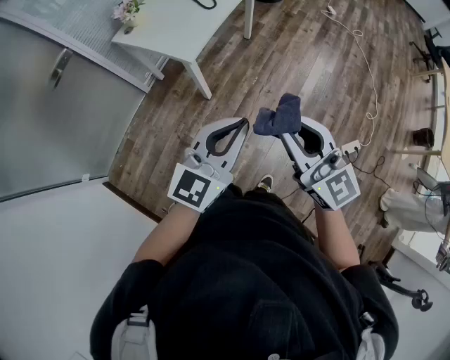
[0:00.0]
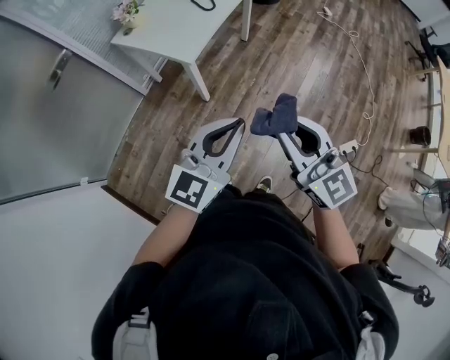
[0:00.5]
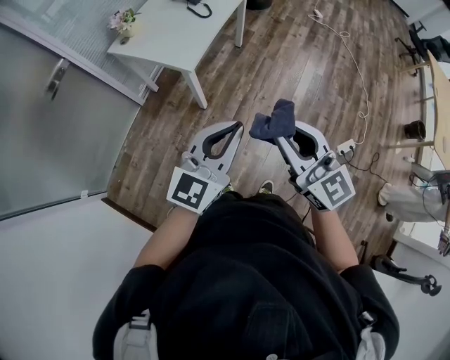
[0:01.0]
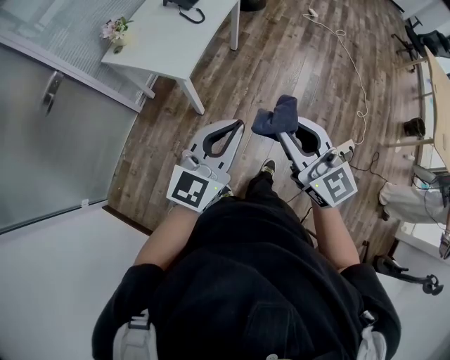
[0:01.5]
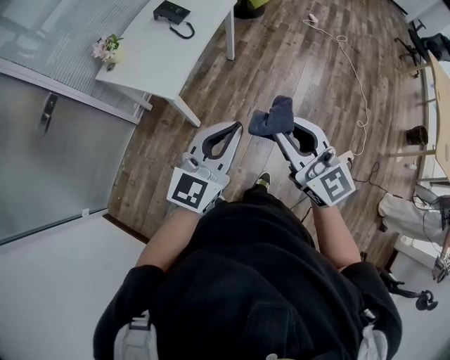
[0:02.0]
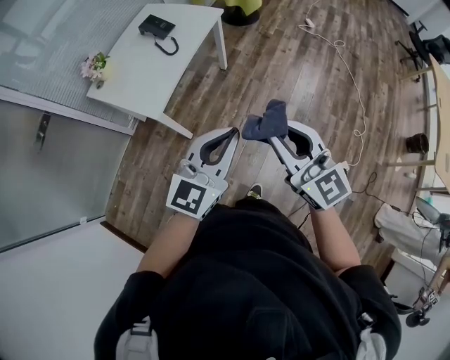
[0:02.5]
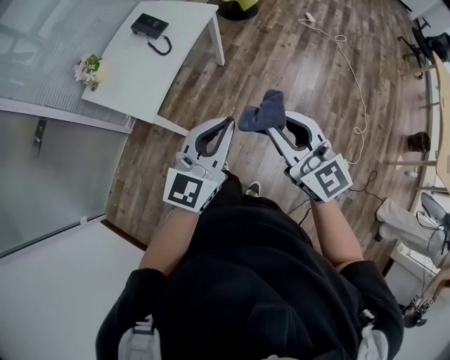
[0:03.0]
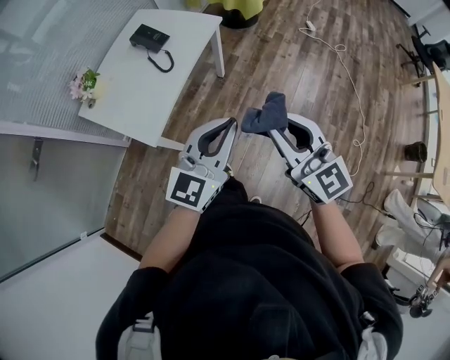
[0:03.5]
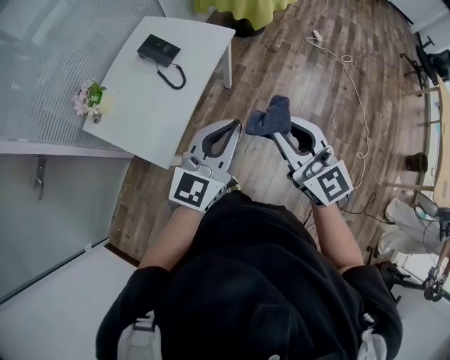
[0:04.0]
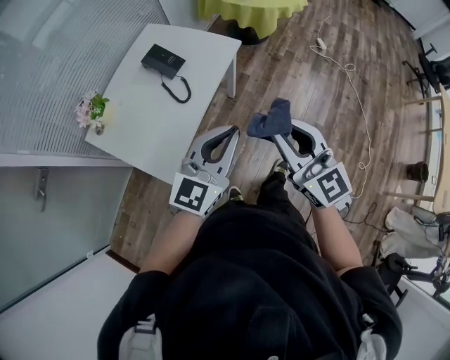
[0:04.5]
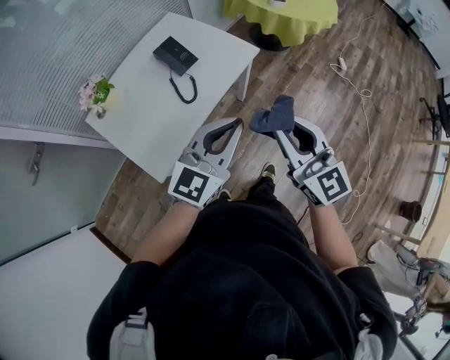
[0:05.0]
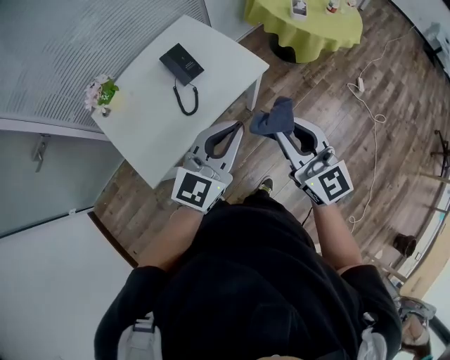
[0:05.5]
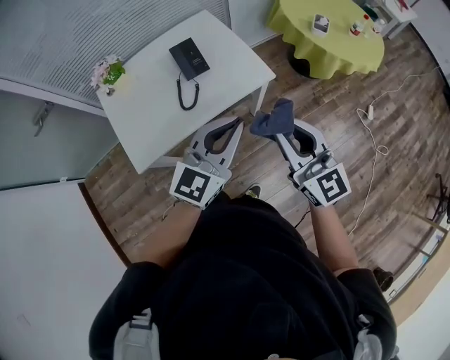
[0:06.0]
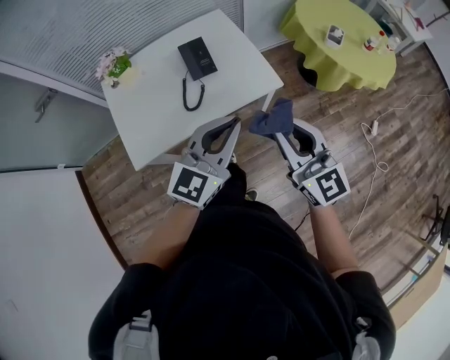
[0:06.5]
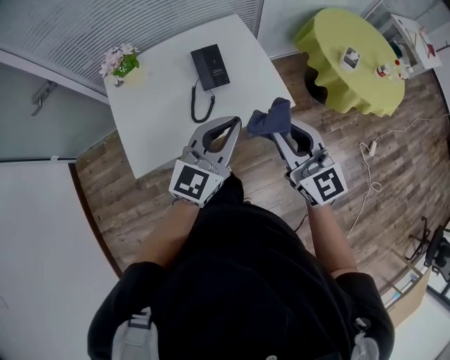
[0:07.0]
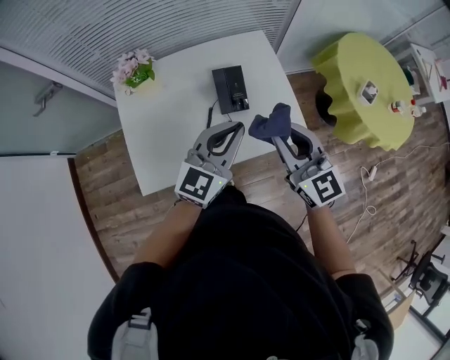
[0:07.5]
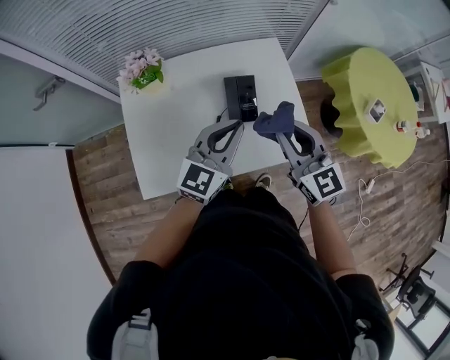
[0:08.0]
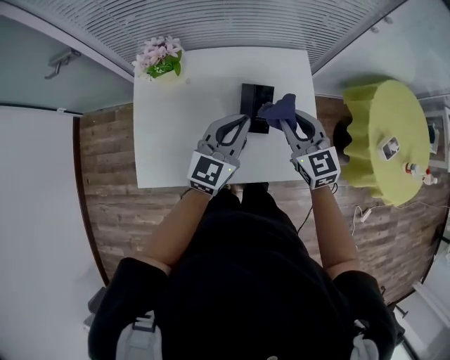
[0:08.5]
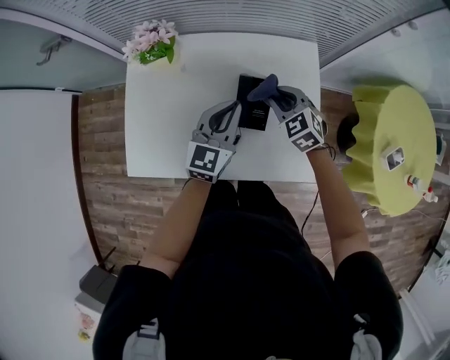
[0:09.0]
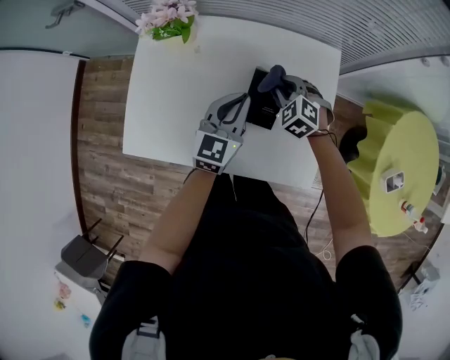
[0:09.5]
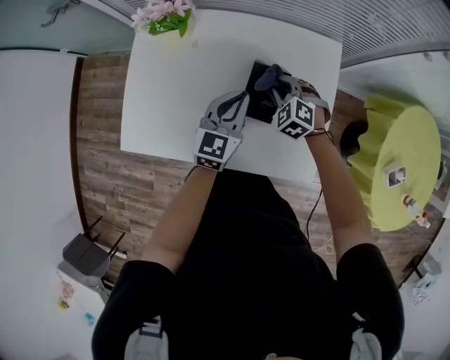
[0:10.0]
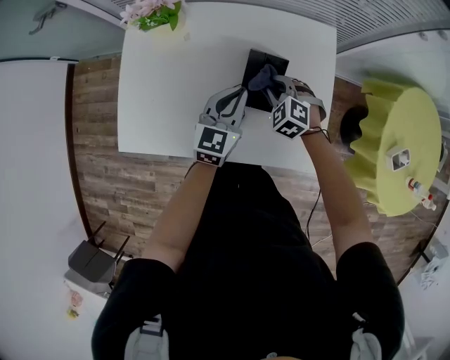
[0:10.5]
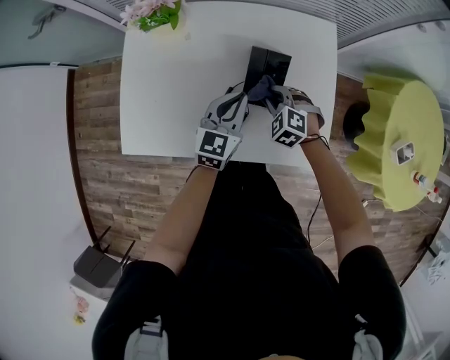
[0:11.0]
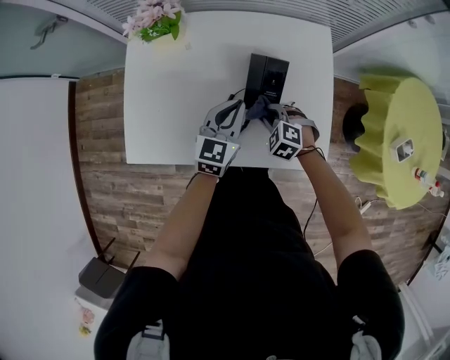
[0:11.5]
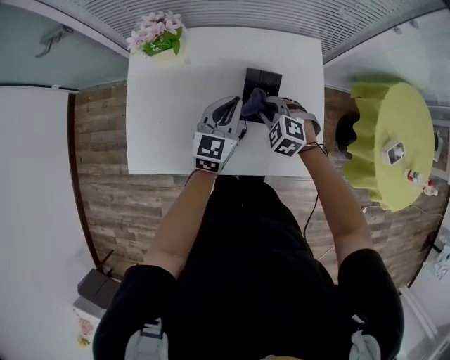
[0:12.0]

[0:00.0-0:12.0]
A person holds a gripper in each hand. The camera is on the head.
0:00.0 to 0:02.0: Both grippers travel together forward, about 10 cm.
0:02.0 to 0:04.0: Both grippers move forward, approximately 35 cm.
0:04.0 to 0:06.0: The left gripper ends up roughly 25 cm from where it was, and changes its angle by roughly 30 degrees, while the right gripper moves some 30 cm, and changes its angle by approximately 30 degrees.
0:06.0 to 0:08.0: Both grippers move forward and to the left, about 35 cm. The left gripper rotates roughly 20 degrees.
0:08.0 to 0:10.0: The right gripper moves downward and forward, approximately 35 cm, and tilts its fingers roughly 40 degrees downward; the left gripper heads downward and forward, covering about 20 cm, and rotates some 30 degrees.
0:10.0 to 0:12.0: The right gripper goes about 5 cm backward.

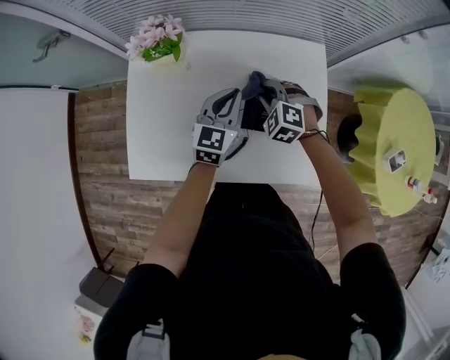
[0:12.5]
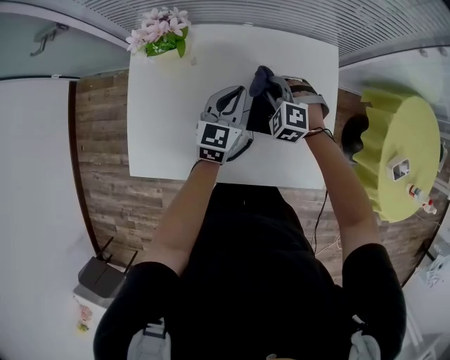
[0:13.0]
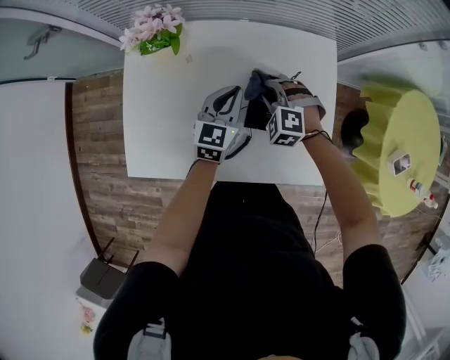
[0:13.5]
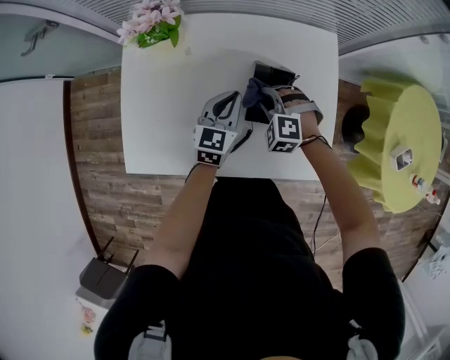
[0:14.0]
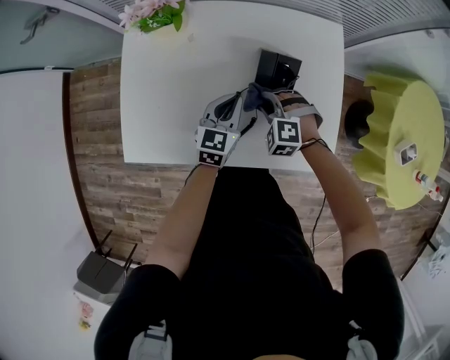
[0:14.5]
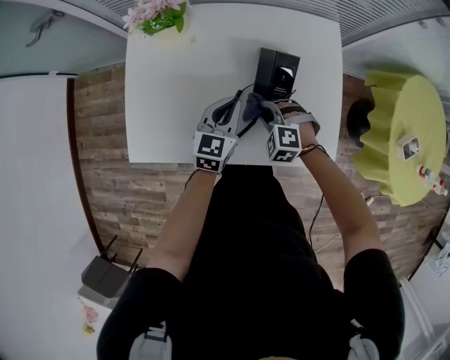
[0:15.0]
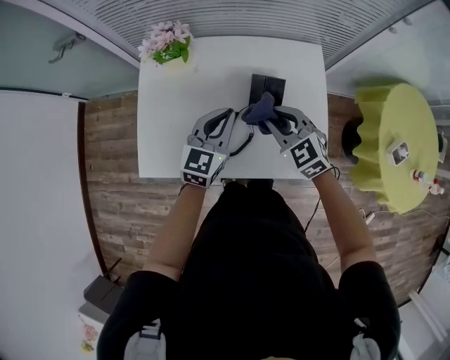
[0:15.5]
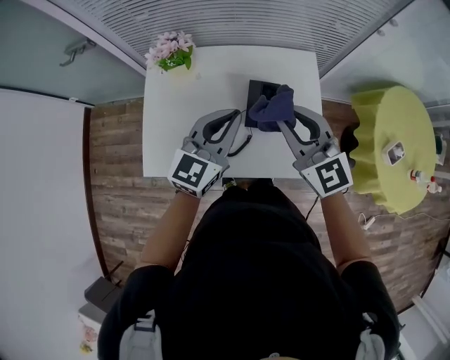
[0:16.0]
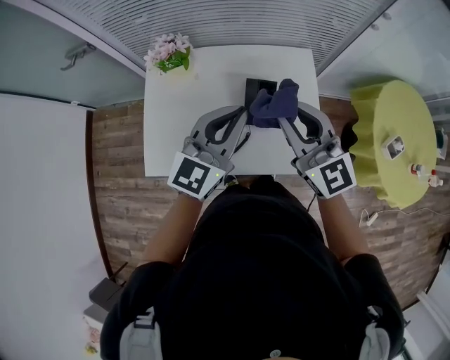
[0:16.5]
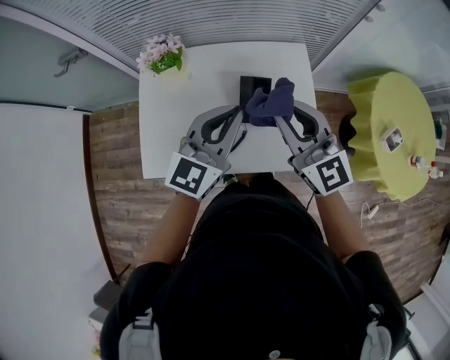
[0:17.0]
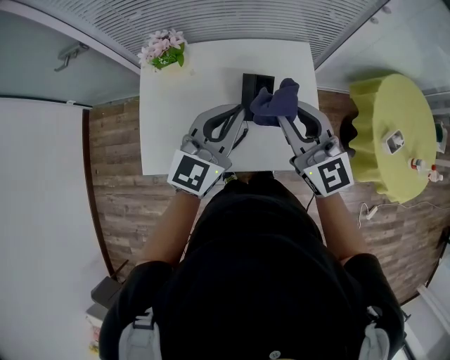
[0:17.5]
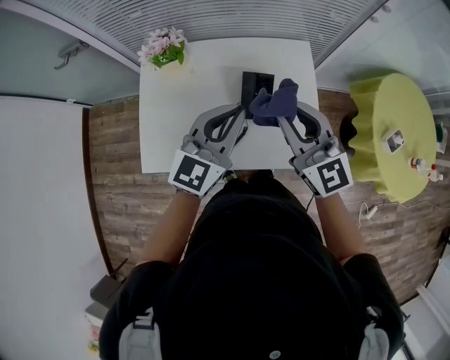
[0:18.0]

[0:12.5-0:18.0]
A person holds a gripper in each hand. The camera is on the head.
0:12.5 to 0:14.5: The left gripper is displaced downward and backward by roughly 10 cm. The right gripper heads backward and downward, covering roughly 15 cm.
0:14.5 to 0:16.0: Both grippers move upward, approximately 30 cm. The left gripper swivels some 20 degrees. The right gripper points its fingers approximately 50 degrees further upward.
0:16.0 to 0:18.0: The grippers stay close to where they were, moving slightly.

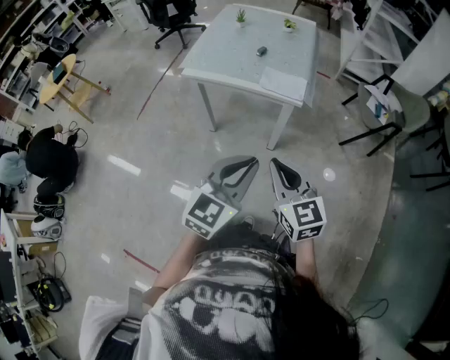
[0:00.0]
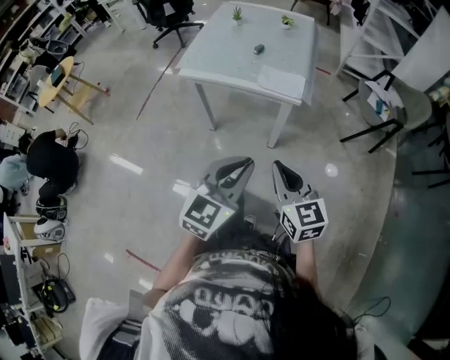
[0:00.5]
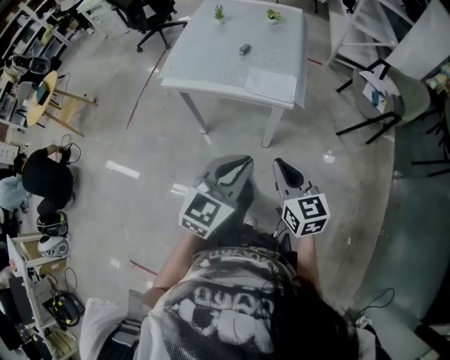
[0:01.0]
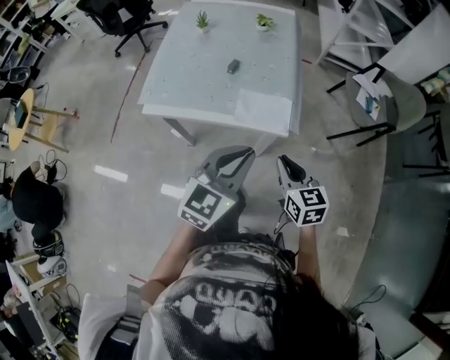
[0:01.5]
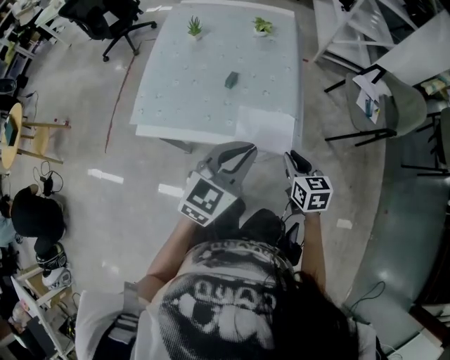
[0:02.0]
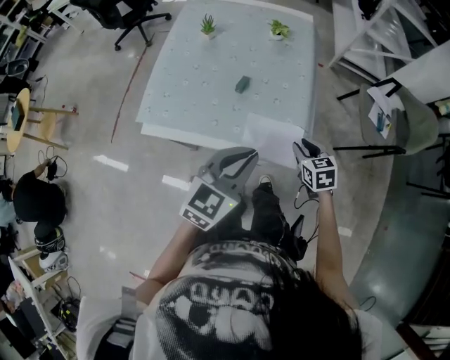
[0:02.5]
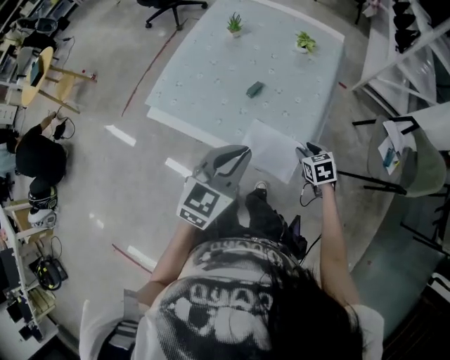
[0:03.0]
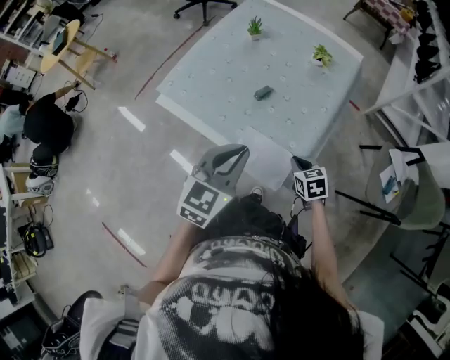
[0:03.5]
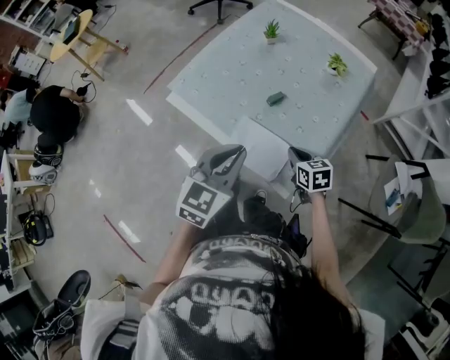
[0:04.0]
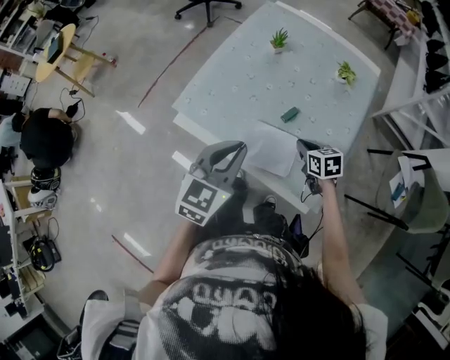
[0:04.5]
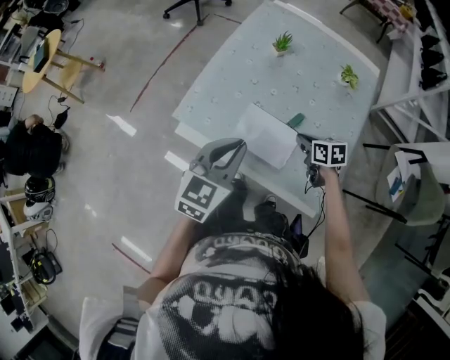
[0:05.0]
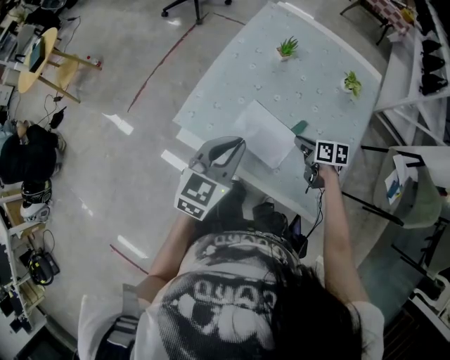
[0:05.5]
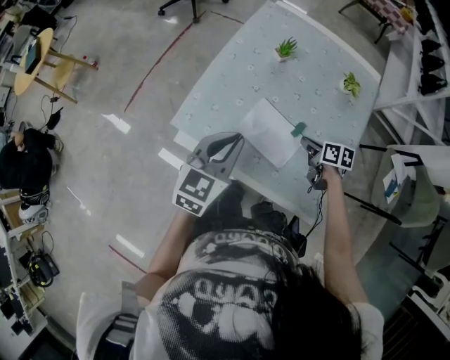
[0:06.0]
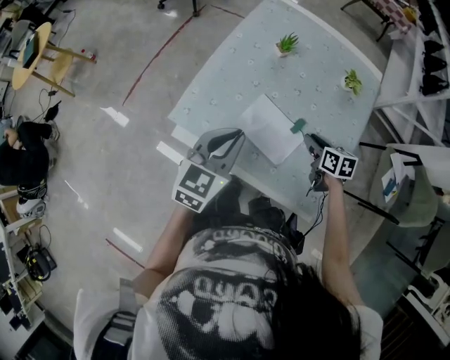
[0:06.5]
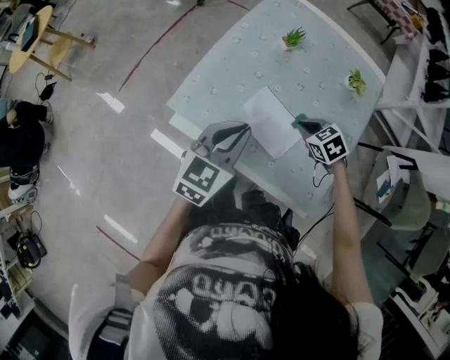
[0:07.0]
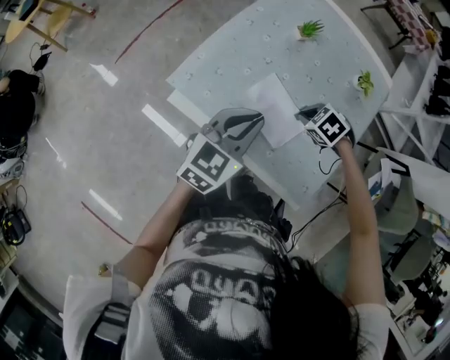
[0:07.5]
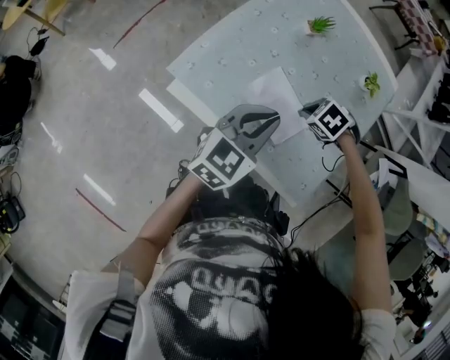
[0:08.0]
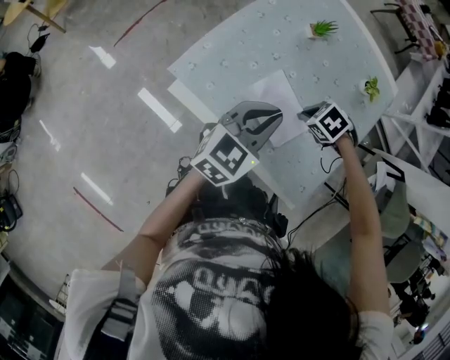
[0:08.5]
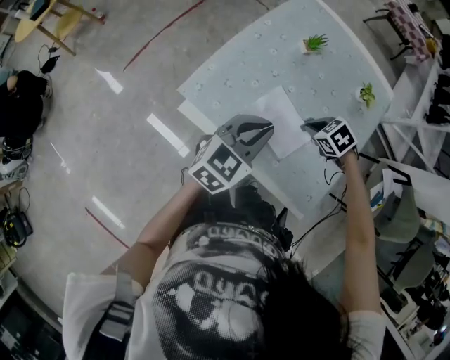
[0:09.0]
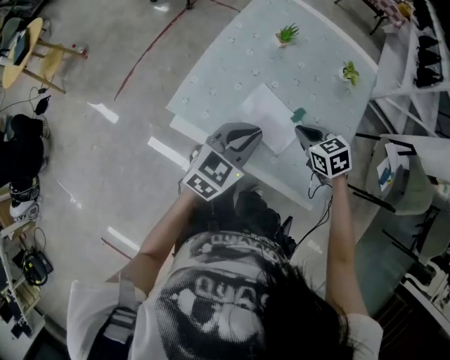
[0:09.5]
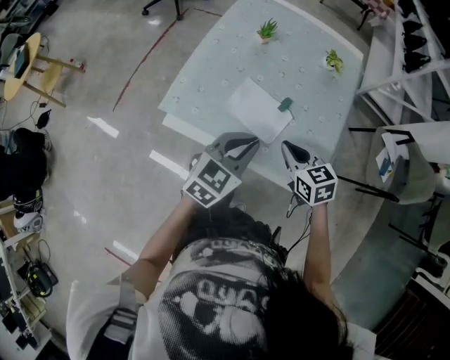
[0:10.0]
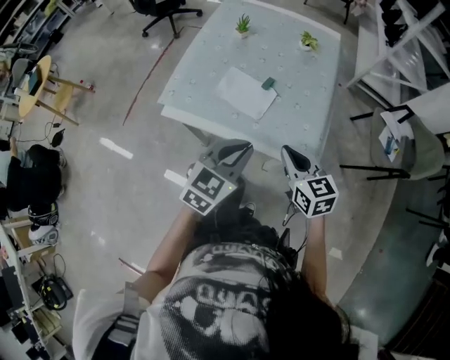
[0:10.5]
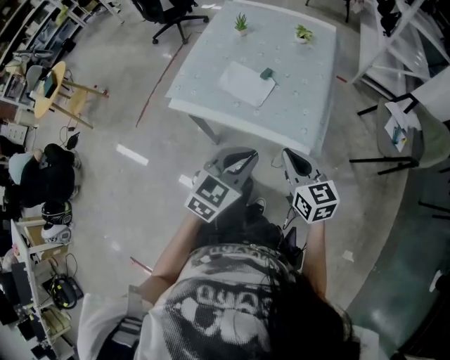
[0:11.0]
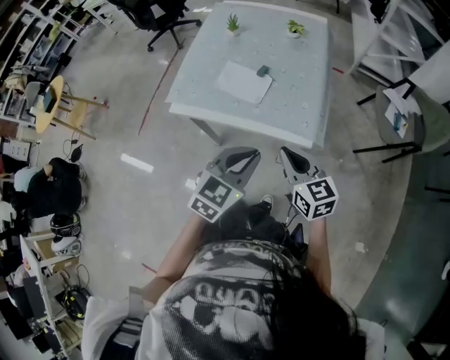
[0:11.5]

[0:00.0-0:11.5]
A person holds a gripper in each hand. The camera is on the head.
0:00.0 to 0:02.0: The grippers both shift forward by approximately 40 cm. The right gripper turns by approximately 30 degrees.
0:02.0 to 0:04.0: The left gripper changes place by approximately 10 cm, and rotates roughly 40 degrees; the right gripper ends up about 20 cm from where it was, turns by about 40 degrees, and opens and closes again.
0:04.0 to 0:06.0: The left gripper goes some 25 cm forward and to the left, while the right gripper heads forward, covering about 15 cm, and changes its angle by roughly 30 degrees.
0:06.0 to 0:07.5: The right gripper moves approximately 5 cm, rolls counterclockwise, seen from behind, by approximately 70 degrees, and opens, then closes once more.
0:07.5 to 0:09.5: The right gripper is displaced upward by approximately 5 cm, and turns by about 40 degrees.
0:09.5 to 0:11.5: The right gripper goes some 30 cm backward, and angles its fingers upward, by about 30 degrees; the left gripper travels backward and to the right by roughly 30 cm.
